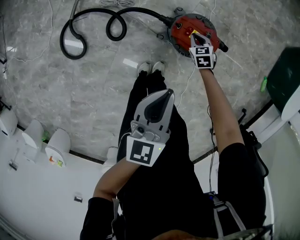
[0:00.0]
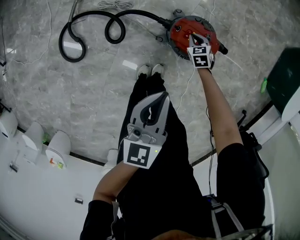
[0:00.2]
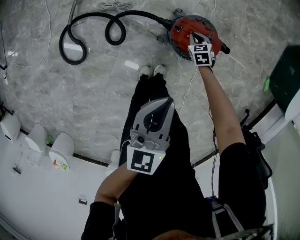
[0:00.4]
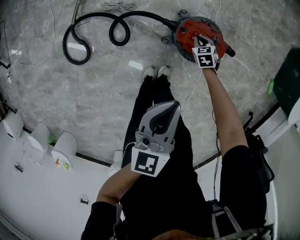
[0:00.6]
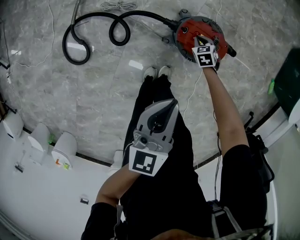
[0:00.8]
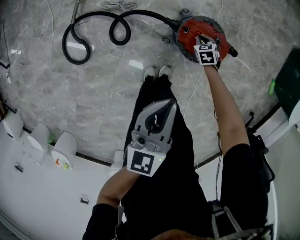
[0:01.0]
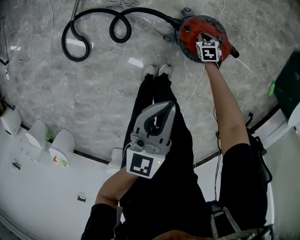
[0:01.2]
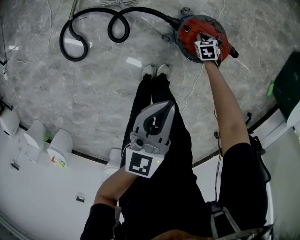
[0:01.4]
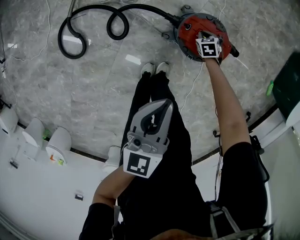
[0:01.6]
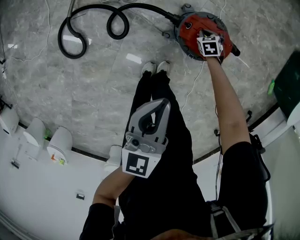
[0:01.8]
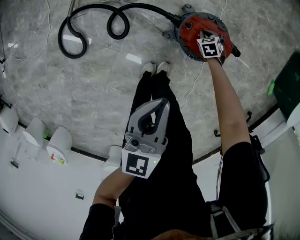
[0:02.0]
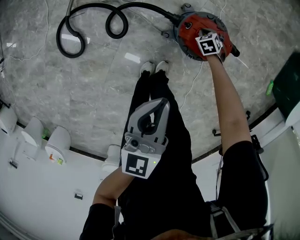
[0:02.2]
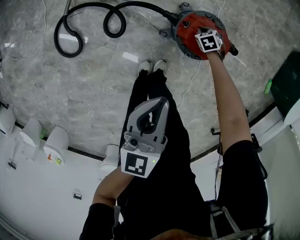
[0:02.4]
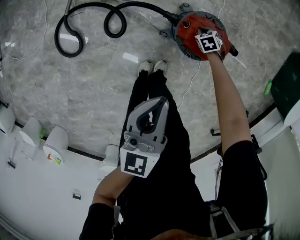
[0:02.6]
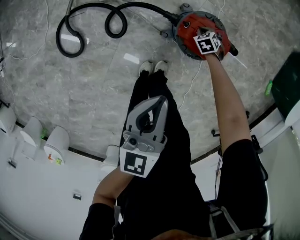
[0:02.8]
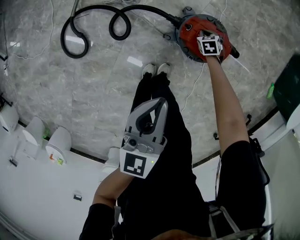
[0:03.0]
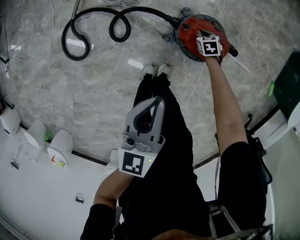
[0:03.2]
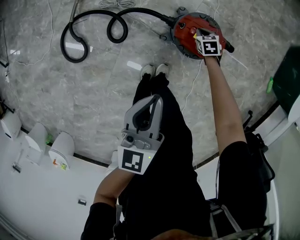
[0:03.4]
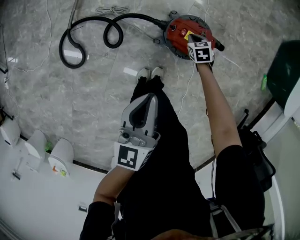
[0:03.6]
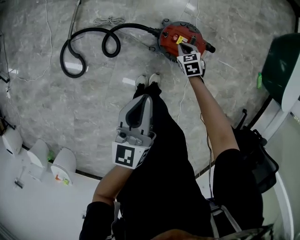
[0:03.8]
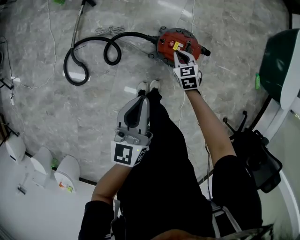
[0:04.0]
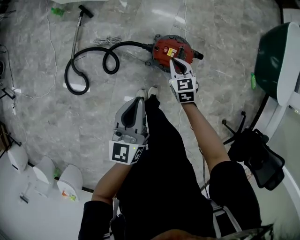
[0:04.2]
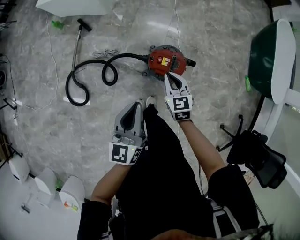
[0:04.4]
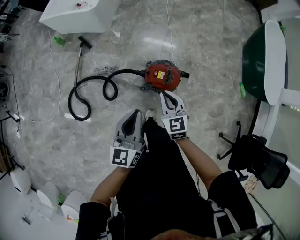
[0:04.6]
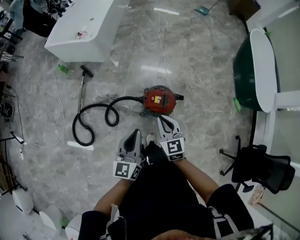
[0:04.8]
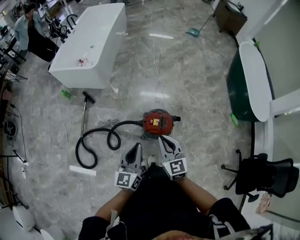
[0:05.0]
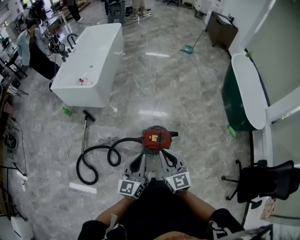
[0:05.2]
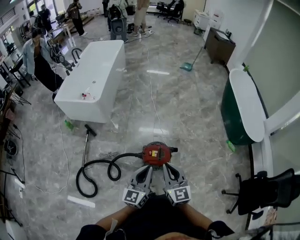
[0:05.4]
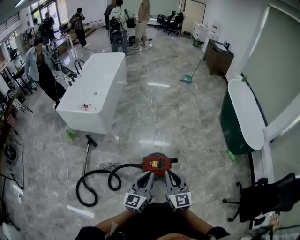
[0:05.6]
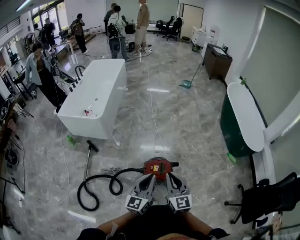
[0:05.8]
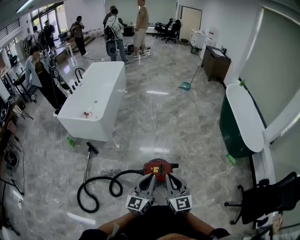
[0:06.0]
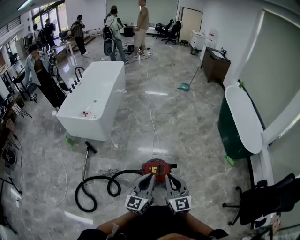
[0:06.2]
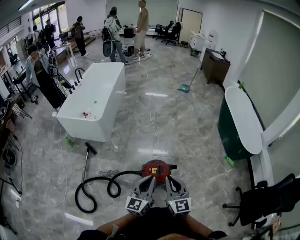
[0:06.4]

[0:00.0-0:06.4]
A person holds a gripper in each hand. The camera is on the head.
0:00.0 to 0:01.6: The right gripper moves downward, roughly 15 cm, while the left gripper ends up roughly 5 cm from where it was.
0:01.6 to 0:03.2: There are only small adjustments of the grippers.
0:03.2 to 0:04.8: The right gripper travels upward by roughly 50 cm, and tilts its fingers about 40 degrees upward; the left gripper shifts roughly 20 cm upward.
0:04.8 to 0:06.4: The right gripper moves upward, about 15 cm, and swivels about 20 degrees; the left gripper travels to the right and upward by about 10 cm, and changes its angle by roughly 20 degrees.

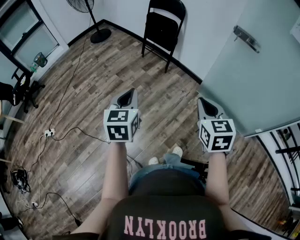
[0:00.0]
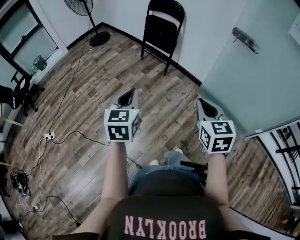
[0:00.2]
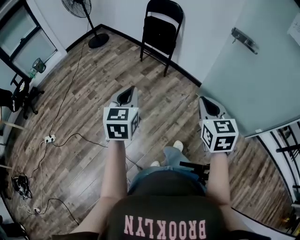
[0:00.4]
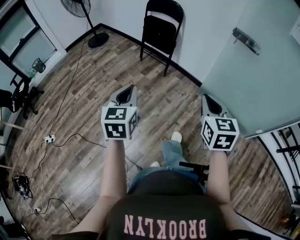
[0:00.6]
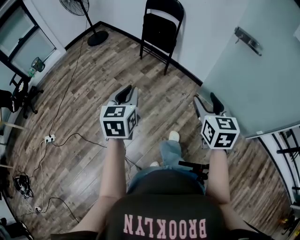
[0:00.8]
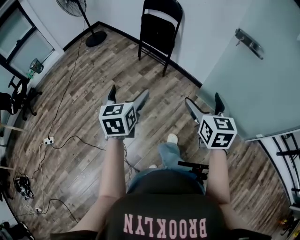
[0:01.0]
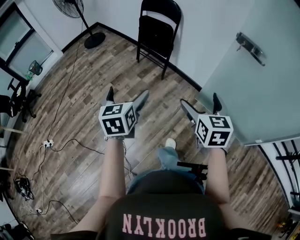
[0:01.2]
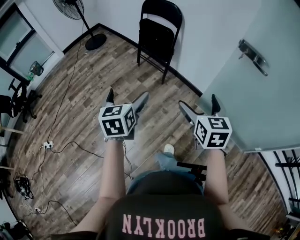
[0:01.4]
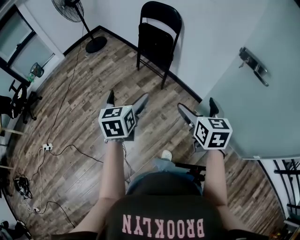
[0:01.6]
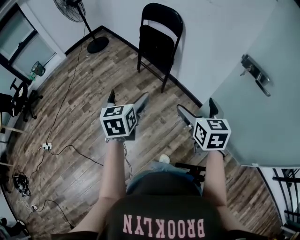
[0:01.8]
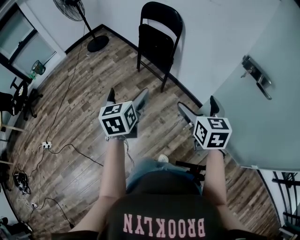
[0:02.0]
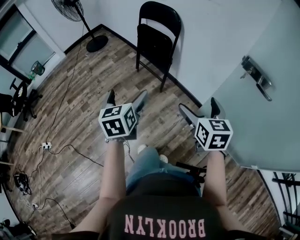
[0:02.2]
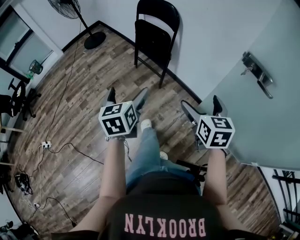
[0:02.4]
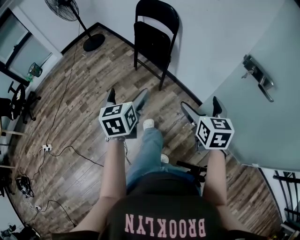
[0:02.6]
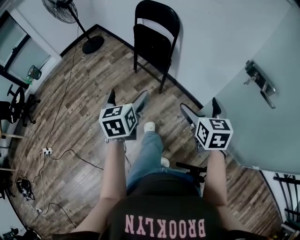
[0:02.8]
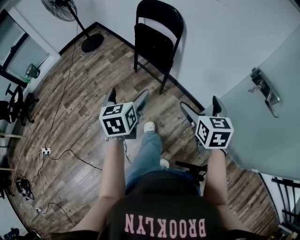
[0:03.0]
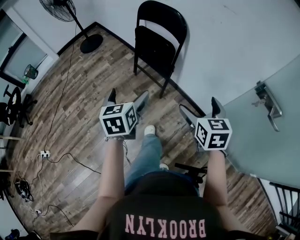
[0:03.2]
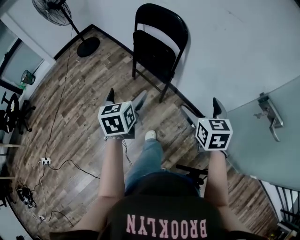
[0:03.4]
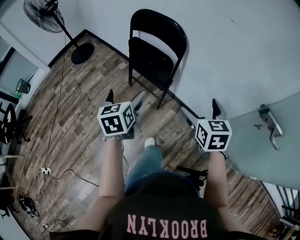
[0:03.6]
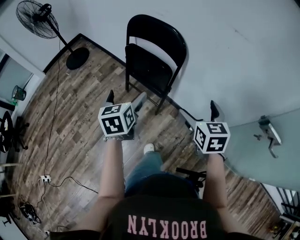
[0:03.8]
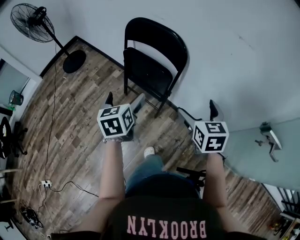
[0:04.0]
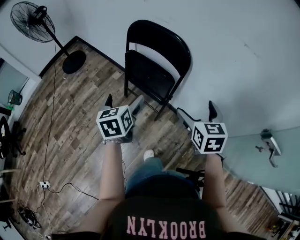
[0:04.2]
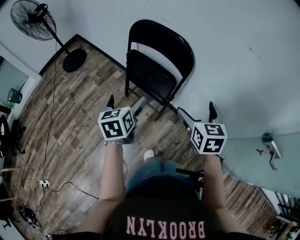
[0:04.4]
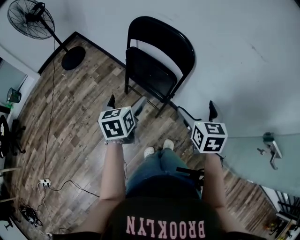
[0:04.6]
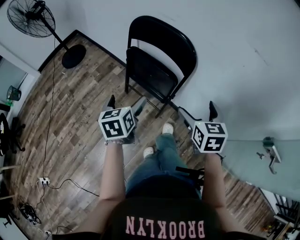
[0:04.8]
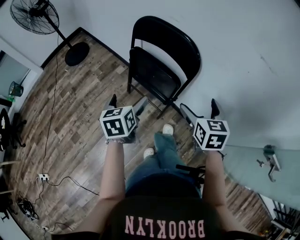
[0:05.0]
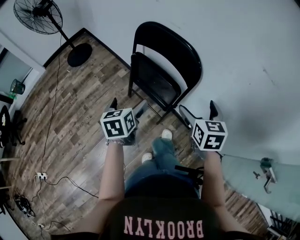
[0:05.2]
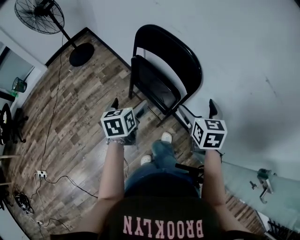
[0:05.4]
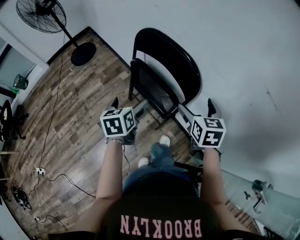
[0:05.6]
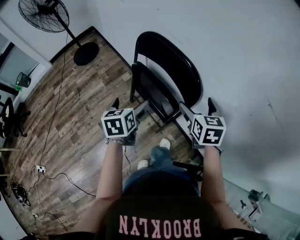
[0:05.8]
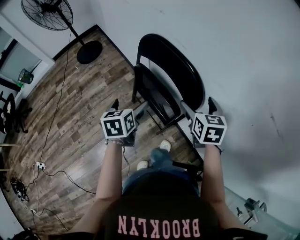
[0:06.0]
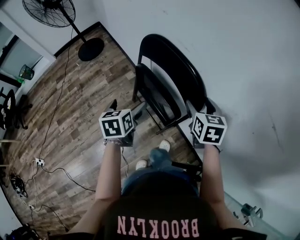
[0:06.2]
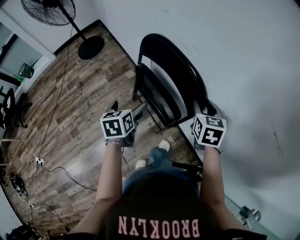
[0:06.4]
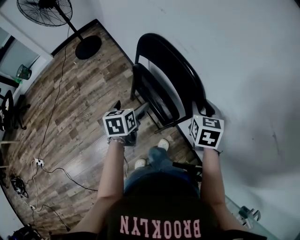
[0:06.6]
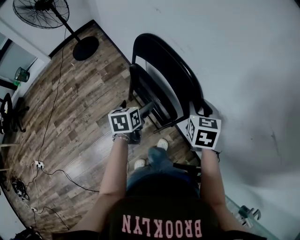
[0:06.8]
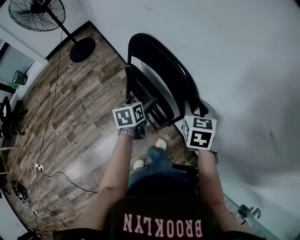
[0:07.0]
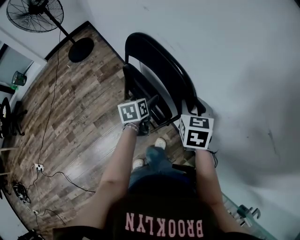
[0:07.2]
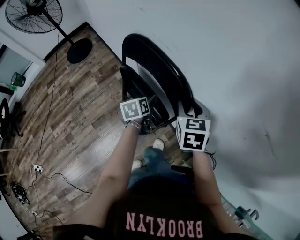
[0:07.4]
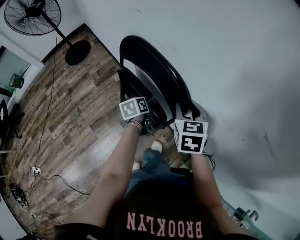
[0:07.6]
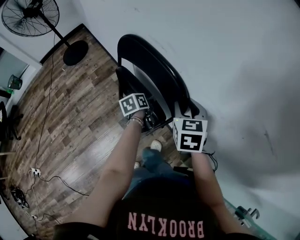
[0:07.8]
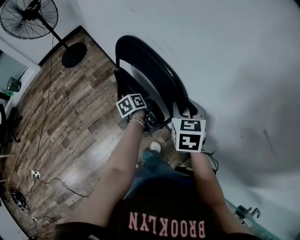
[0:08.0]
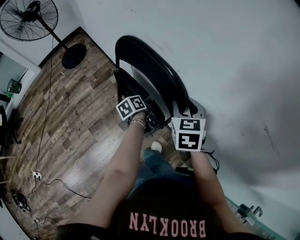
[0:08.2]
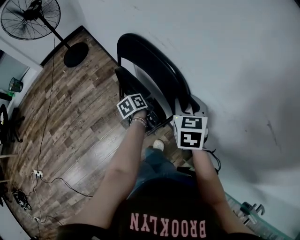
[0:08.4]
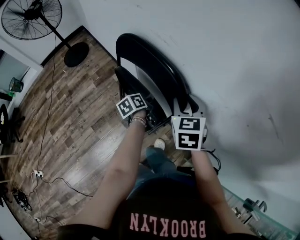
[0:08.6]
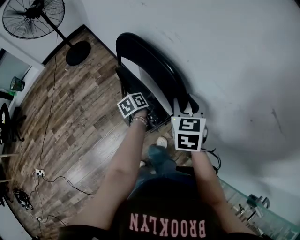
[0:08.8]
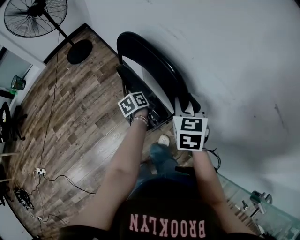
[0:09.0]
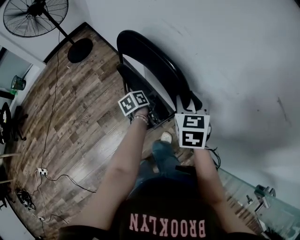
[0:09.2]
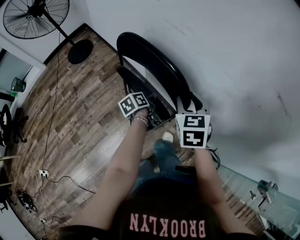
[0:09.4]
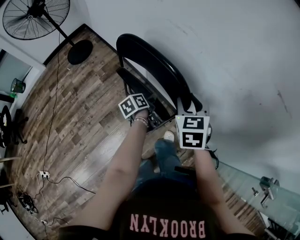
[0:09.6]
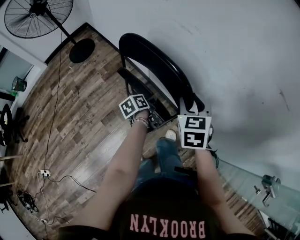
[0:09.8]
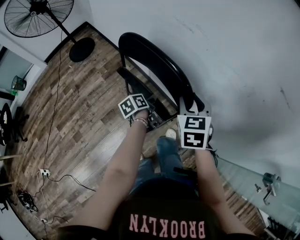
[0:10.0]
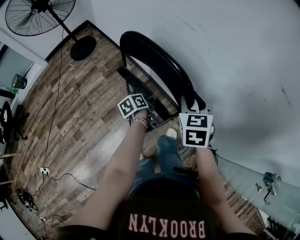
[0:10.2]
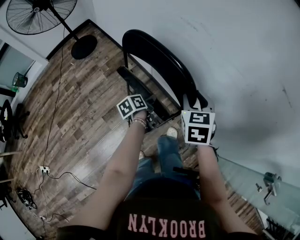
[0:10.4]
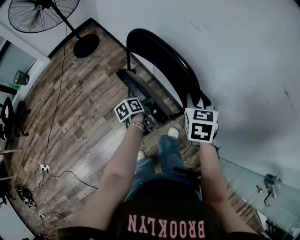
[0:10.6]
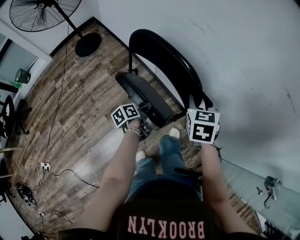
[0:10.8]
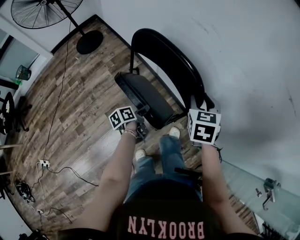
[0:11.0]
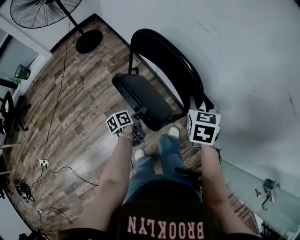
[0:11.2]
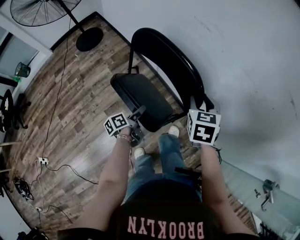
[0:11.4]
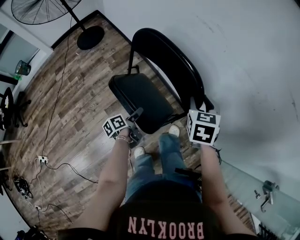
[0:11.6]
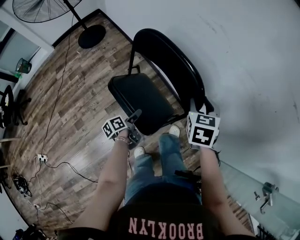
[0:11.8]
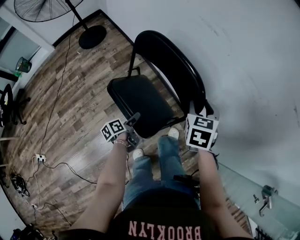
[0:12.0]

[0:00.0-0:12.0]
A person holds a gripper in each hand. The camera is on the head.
0:00.0 to 0:01.6: Both grippers move forward, approximately 30 cm. The left gripper opens up; the right gripper opens its fingers.
0:01.6 to 0:03.0: Both grippers move forward, roughly 15 cm.
0:03.0 to 0:04.4: Both grippers move forward, about 30 cm.
0:04.4 to 0:06.0: The left gripper goes about 15 cm forward, while the right gripper is displaced forward by roughly 25 cm.
0:06.0 to 0:07.6: The left gripper shifts some 20 cm downward, to the right and forward, rotates approximately 30 degrees, and closes; the right gripper closes.
0:07.6 to 0:09.0: The right gripper shifts roughly 5 cm backward, while the left gripper shifts by about 5 cm.
0:09.0 to 0:10.4: The right gripper goes about 5 cm backward. The left gripper heads backward and to the left, covering approximately 10 cm.
0:10.4 to 0:12.0: The left gripper shifts some 15 cm backward, to the left and downward.

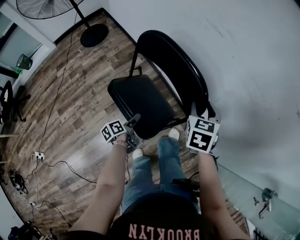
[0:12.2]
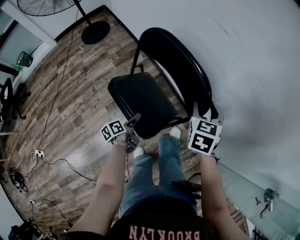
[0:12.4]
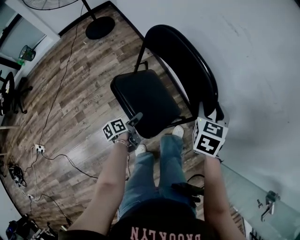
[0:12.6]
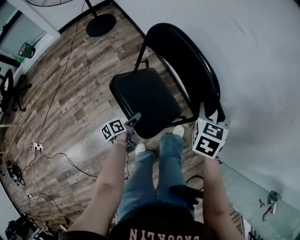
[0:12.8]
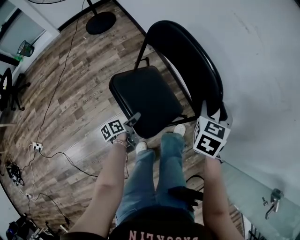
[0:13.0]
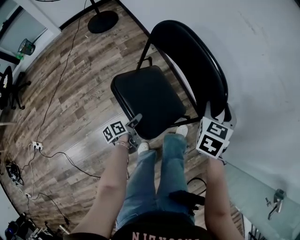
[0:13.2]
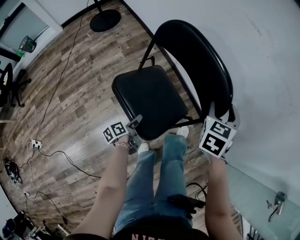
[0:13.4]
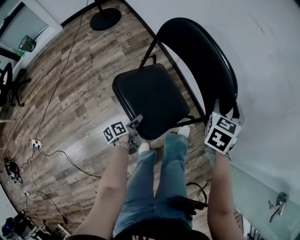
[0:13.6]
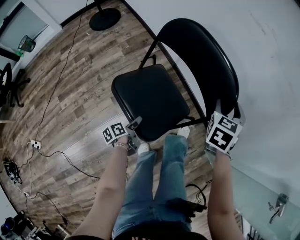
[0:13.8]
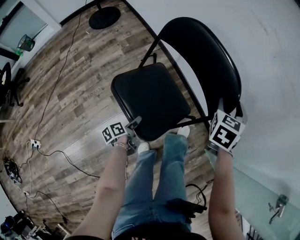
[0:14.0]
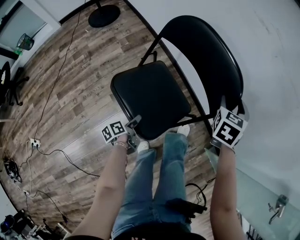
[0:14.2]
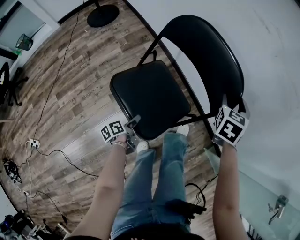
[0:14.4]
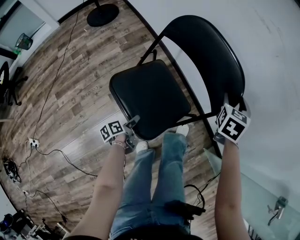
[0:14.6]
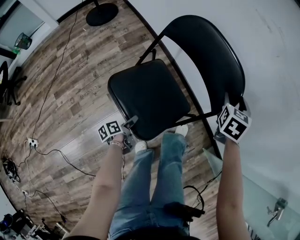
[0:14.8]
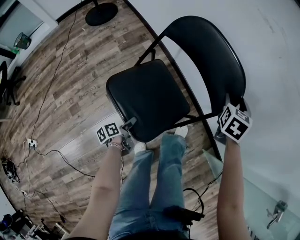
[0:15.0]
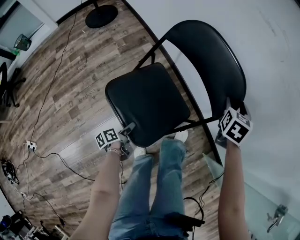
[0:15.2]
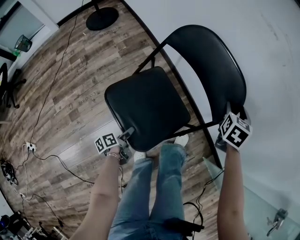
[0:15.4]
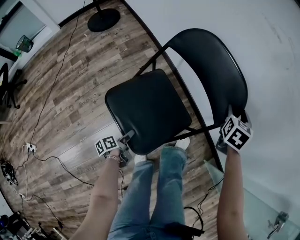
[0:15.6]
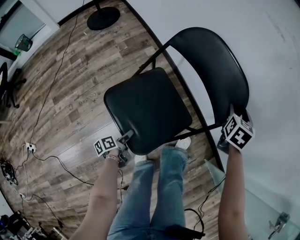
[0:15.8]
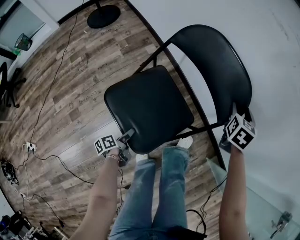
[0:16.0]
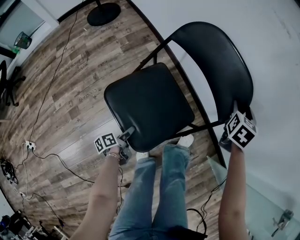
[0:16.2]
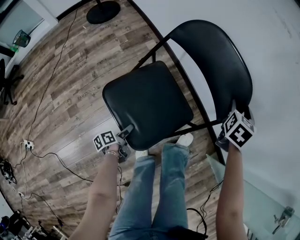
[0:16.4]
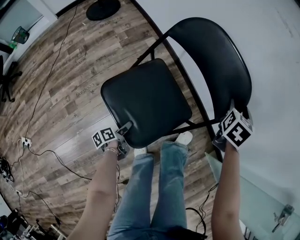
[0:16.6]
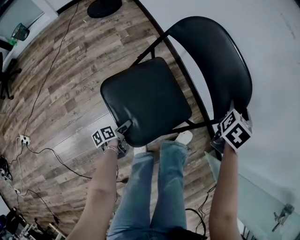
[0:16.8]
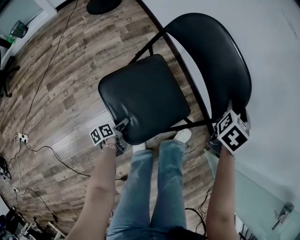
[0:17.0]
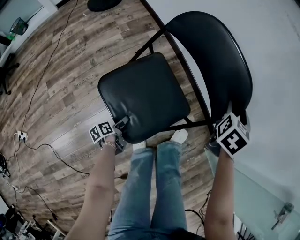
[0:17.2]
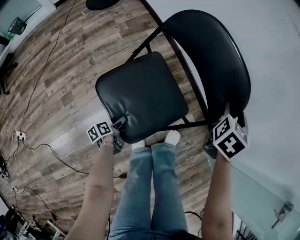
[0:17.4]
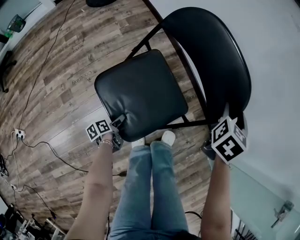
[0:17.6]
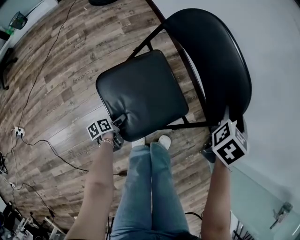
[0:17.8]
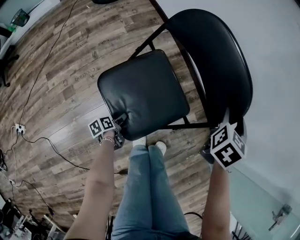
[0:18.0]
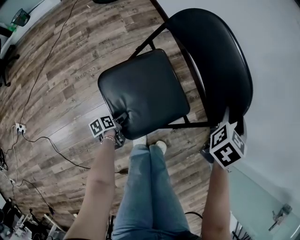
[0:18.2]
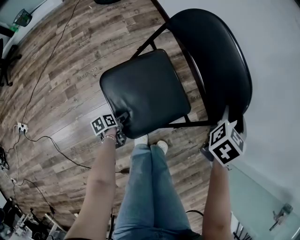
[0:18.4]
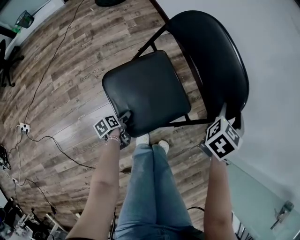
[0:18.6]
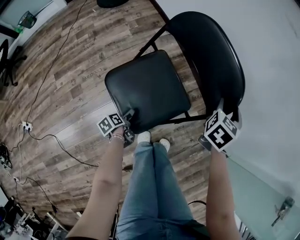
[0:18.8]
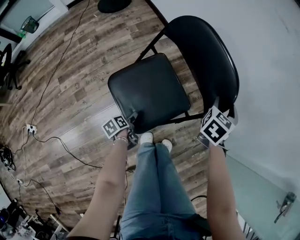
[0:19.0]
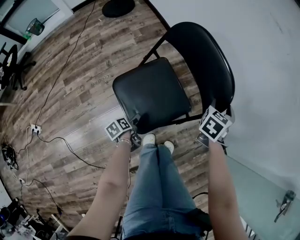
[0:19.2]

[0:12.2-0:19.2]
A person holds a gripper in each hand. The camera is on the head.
0:12.2 to 0:13.6: The right gripper moves roughly 5 cm. The left gripper travels downward, backward and to the left by approximately 15 cm.
0:13.6 to 0:15.0: The left gripper moves downward, approximately 5 cm. The right gripper shifts about 10 cm forward and downward.
0:15.0 to 0:16.4: The right gripper changes place by roughly 5 cm, while the left gripper heads downward, covering some 5 cm.
0:16.4 to 0:17.8: The right gripper shifts some 10 cm backward, while the left gripper shifts roughly 10 cm backward and downward.
0:17.8 to 0:19.2: The left gripper shifts approximately 10 cm upward.
